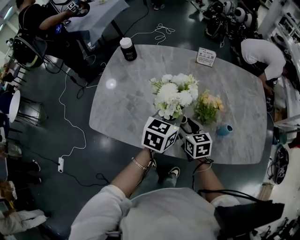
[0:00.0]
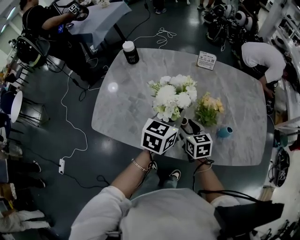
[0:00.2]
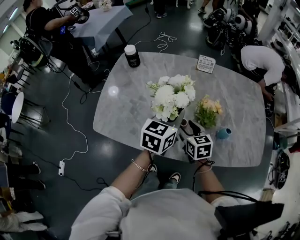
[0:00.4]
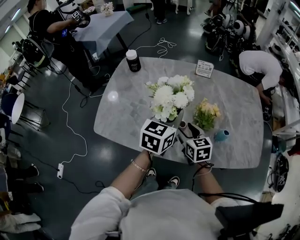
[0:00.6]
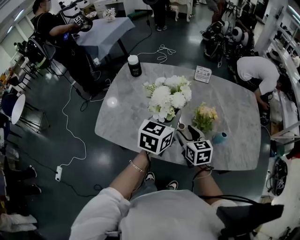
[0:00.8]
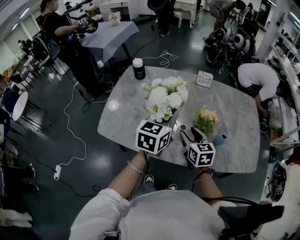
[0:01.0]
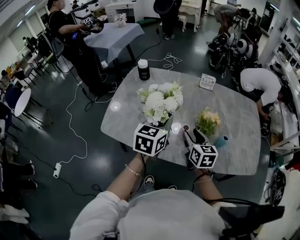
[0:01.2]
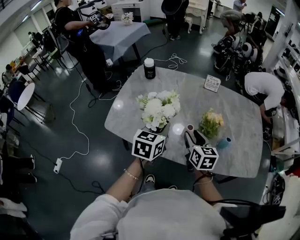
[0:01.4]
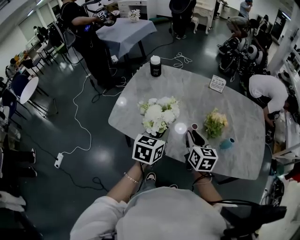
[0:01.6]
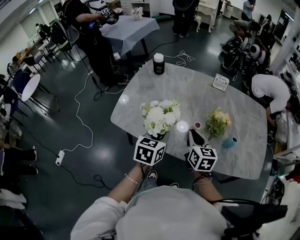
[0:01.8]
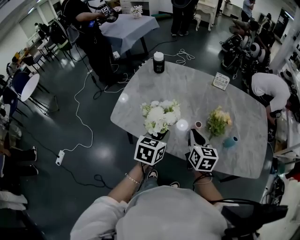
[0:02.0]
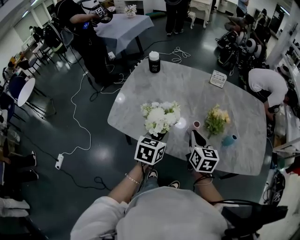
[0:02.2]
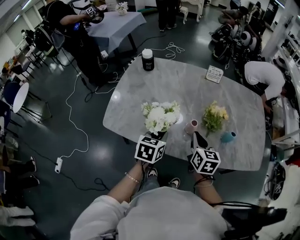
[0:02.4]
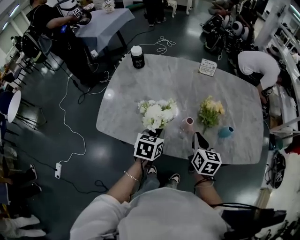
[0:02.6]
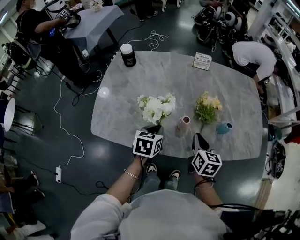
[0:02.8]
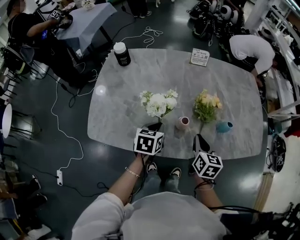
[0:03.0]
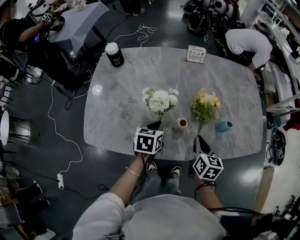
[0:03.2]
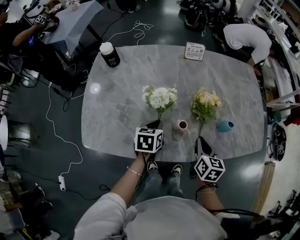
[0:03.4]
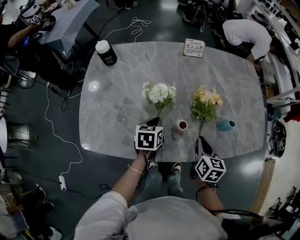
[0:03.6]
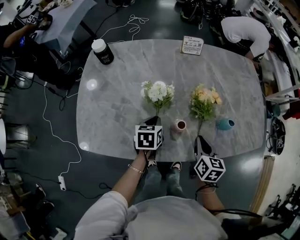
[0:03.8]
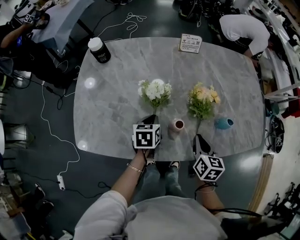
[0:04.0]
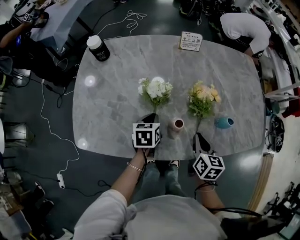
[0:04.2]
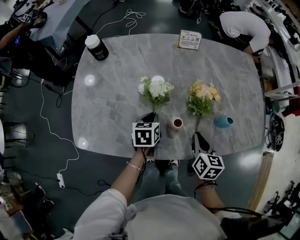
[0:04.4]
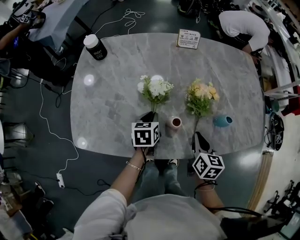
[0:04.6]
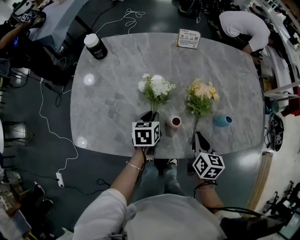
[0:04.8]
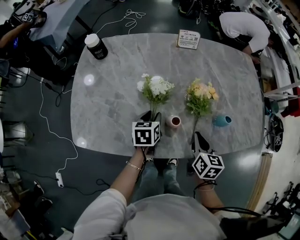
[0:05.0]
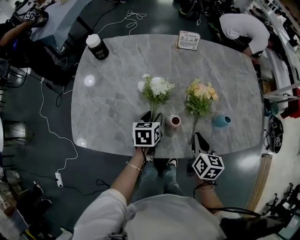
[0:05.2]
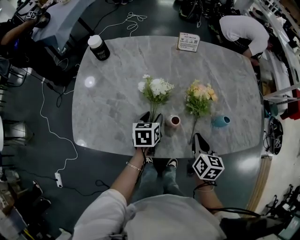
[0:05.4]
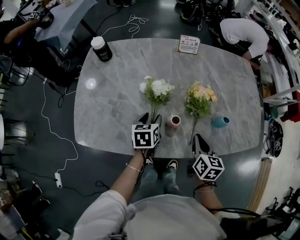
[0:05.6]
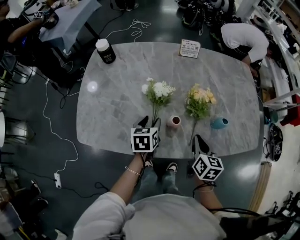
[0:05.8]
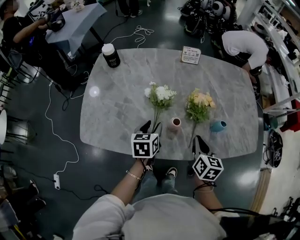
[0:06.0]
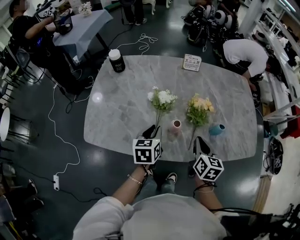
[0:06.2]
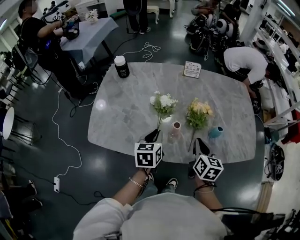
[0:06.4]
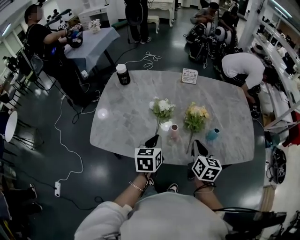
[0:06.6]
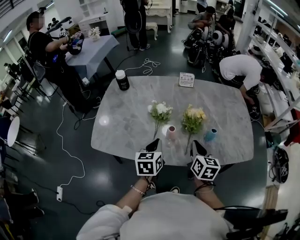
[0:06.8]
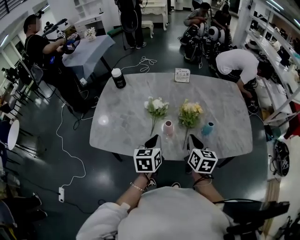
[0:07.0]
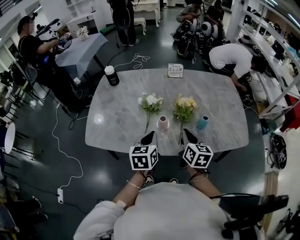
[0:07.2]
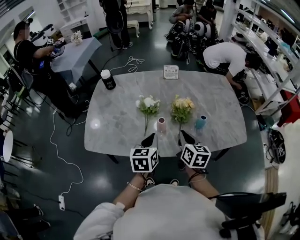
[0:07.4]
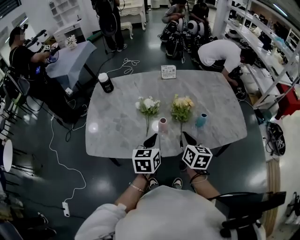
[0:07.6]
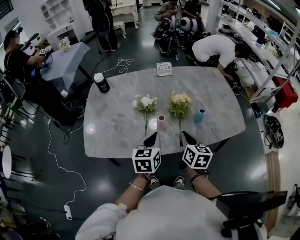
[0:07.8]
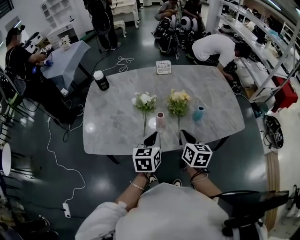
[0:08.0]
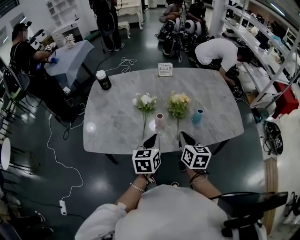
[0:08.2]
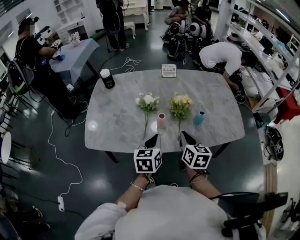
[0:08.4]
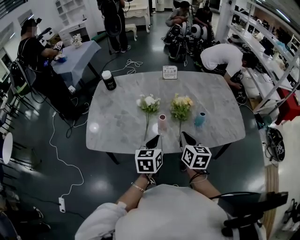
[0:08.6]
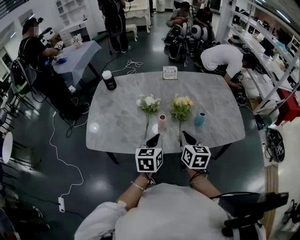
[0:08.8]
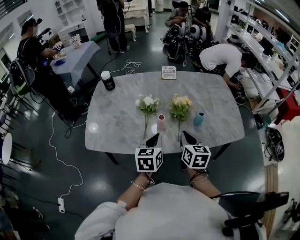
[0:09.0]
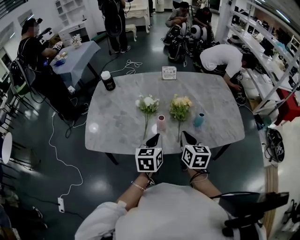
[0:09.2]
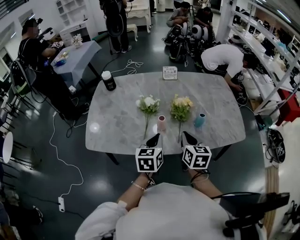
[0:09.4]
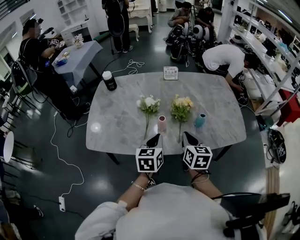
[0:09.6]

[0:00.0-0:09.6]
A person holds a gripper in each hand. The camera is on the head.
0:00.0 to 0:01.6: The left gripper moves to the left and backward, approximately 15 cm. Meanwhile the right gripper shifts about 10 cm upward and backward, and closes its fingers.
0:01.6 to 0:03.2: The right gripper heads to the right and downward, covering roughly 15 cm, changes its angle by approximately 30 degrees, and closes. The left gripper is displaced downward and forward by about 15 cm, and turns by roughly 20 degrees.
0:03.2 to 0:04.8: The left gripper is displaced downward by approximately 5 cm.
0:04.8 to 0:06.4: The right gripper shifts approximately 10 cm upward; the left gripper is displaced upward and backward by about 15 cm, and opens and closes again.
0:06.4 to 0:08.0: The right gripper is displaced backward by some 5 cm. The left gripper heads backward and to the right, covering about 10 cm.
0:08.0 to 0:09.6: The grippers move only a little.

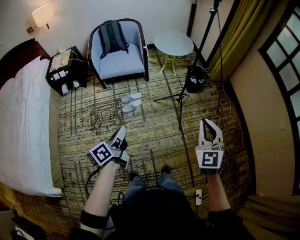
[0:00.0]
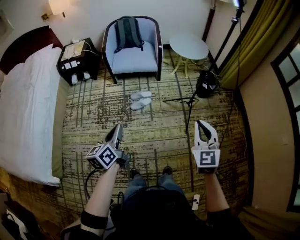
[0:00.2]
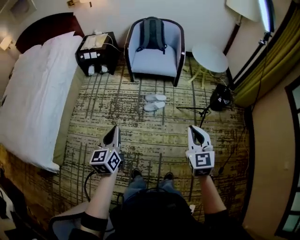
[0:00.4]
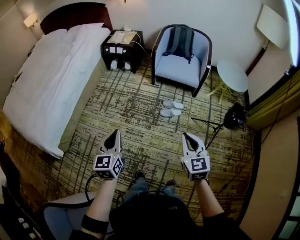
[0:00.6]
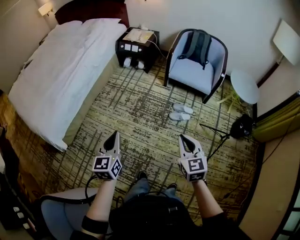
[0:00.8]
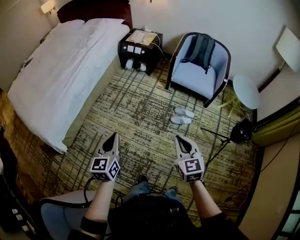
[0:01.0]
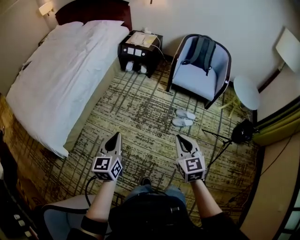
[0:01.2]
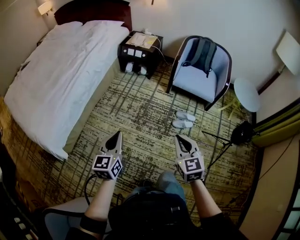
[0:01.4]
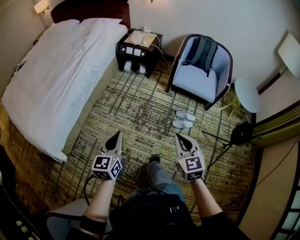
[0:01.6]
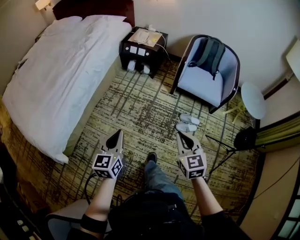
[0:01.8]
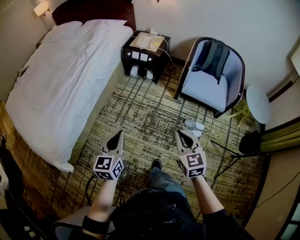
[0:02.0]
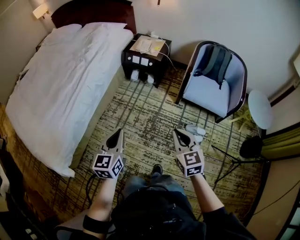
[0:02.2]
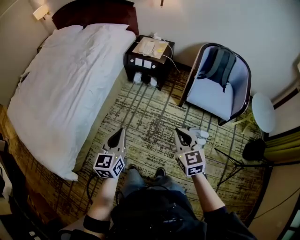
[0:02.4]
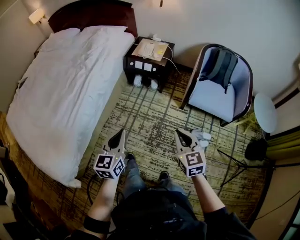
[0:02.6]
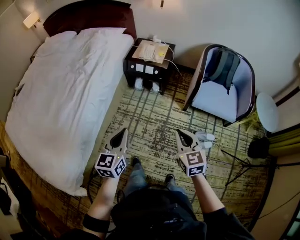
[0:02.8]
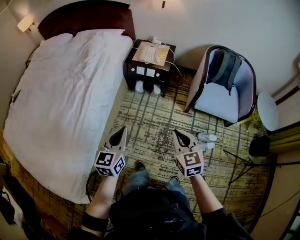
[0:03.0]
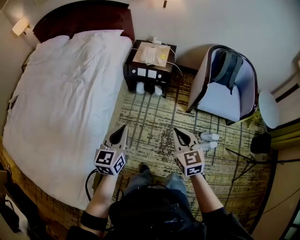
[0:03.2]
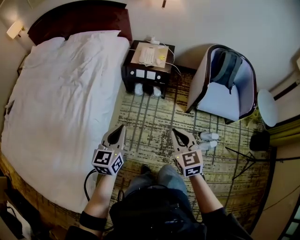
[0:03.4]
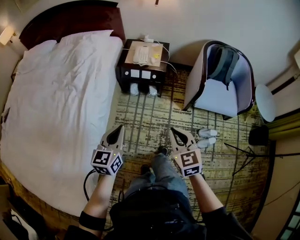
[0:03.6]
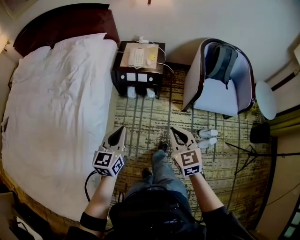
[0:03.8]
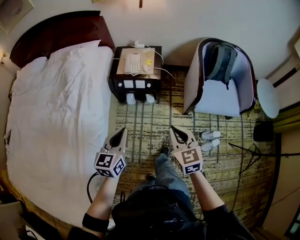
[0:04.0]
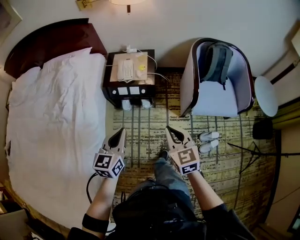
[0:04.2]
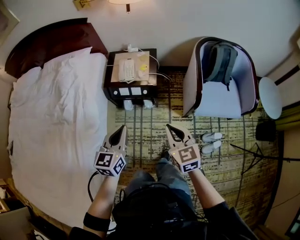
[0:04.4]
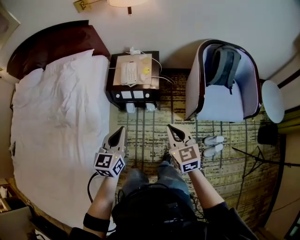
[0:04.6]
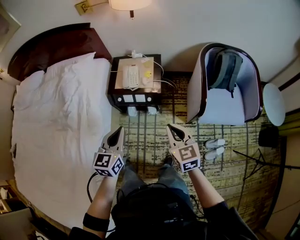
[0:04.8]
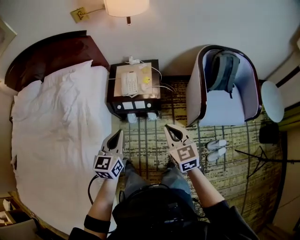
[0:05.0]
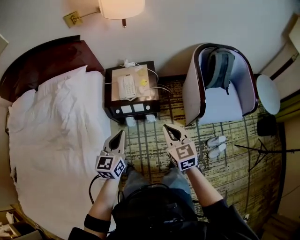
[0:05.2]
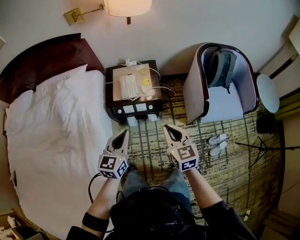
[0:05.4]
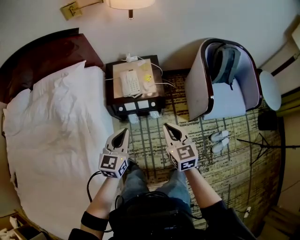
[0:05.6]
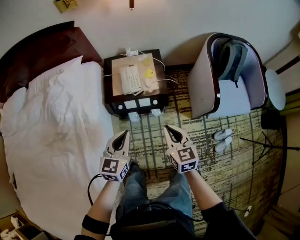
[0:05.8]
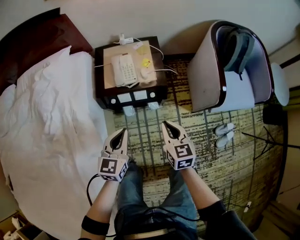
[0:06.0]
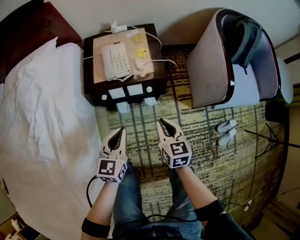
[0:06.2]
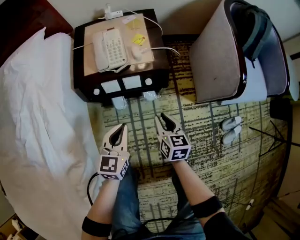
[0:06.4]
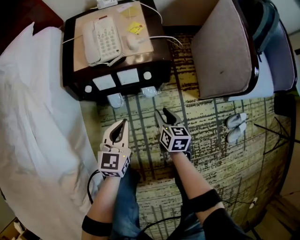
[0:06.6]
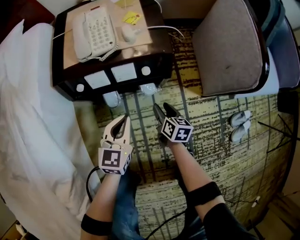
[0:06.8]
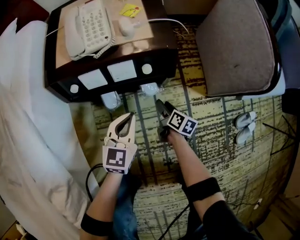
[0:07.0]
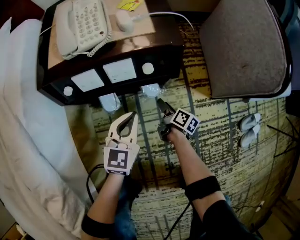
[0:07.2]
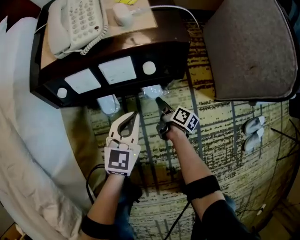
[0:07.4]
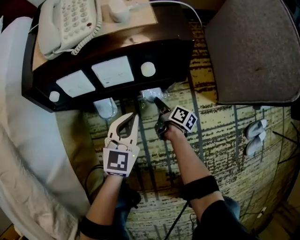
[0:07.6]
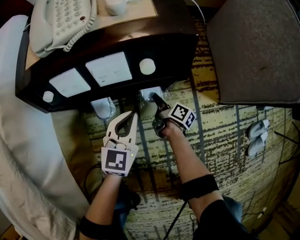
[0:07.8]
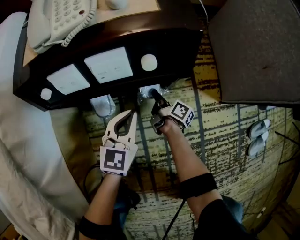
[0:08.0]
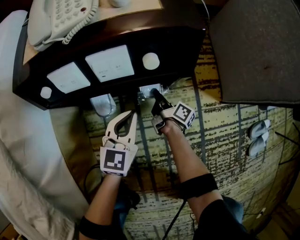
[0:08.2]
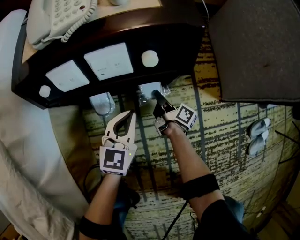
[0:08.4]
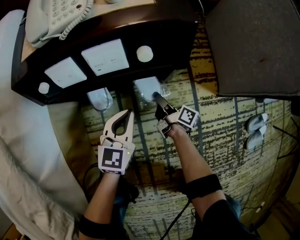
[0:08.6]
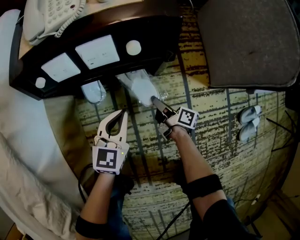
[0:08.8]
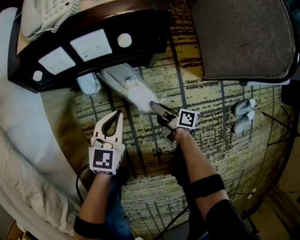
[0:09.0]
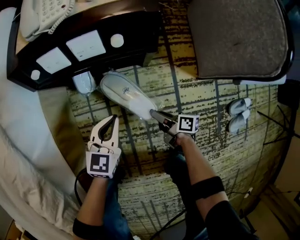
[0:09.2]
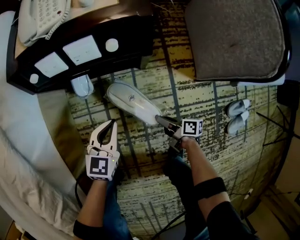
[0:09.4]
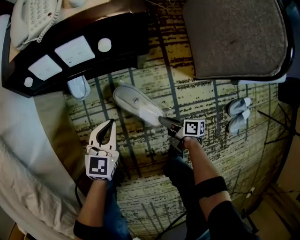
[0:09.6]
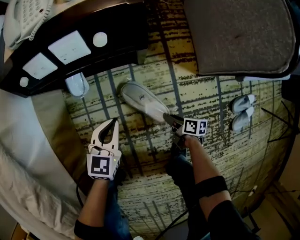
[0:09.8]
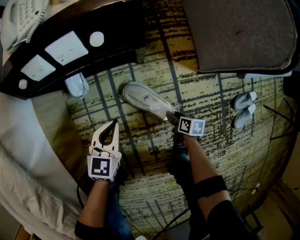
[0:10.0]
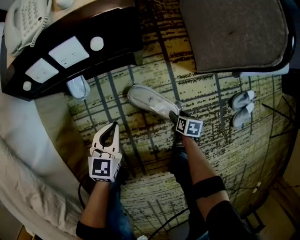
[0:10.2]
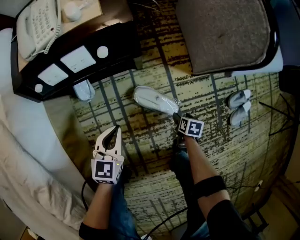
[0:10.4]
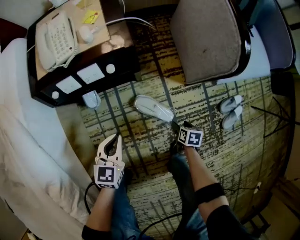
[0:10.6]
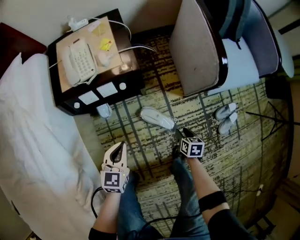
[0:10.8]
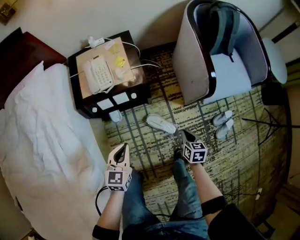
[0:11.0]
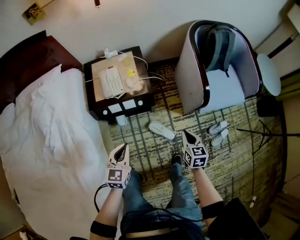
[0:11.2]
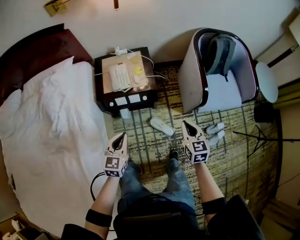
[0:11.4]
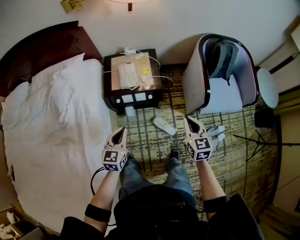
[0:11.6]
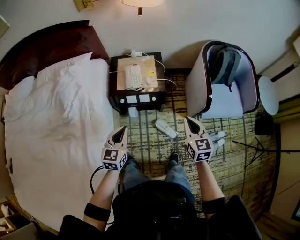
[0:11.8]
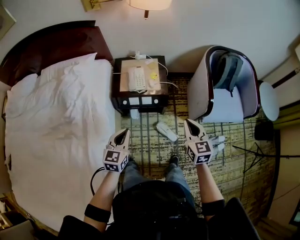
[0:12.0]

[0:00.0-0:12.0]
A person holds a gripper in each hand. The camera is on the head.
0:00.0 to 0:01.6: Both grippers are carried roughly 50 cm. The right gripper rotates about 40 degrees, while the left gripper changes its angle by approximately 50 degrees.
0:01.6 to 0:03.0: Both grippers are carried forward, roughly 50 cm.
0:03.0 to 0:04.4: Both grippers travel together forward, about 35 cm.
0:04.4 to 0:06.0: The grippers both shift downward, forward and to the left by about 30 cm. The right gripper changes its angle by roughly 20 degrees.
0:06.0 to 0:07.6: Both grippers move downward, about 60 cm. The right gripper rotates around the line of its fingers by approximately 60 degrees, clockwise from behind, and opens up.
0:07.6 to 0:09.0: The right gripper heads backward and upward, covering roughly 15 cm, and turns by about 20 degrees; the left gripper shifts approximately 10 cm backward.
0:09.0 to 0:10.4: The right gripper travels to the right and backward by roughly 25 cm, angles its fingers downward, by approximately 60 degrees, and opens up; the left gripper heads backward, covering about 5 cm.
0:10.4 to 0:12.0: The grippers both shift upward by some 70 cm. The right gripper points its fingers roughly 50 degrees further upward, and closes up.

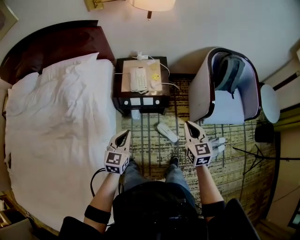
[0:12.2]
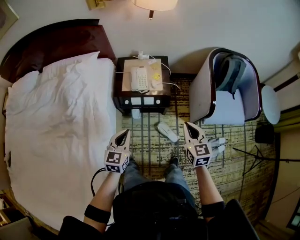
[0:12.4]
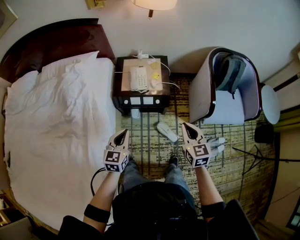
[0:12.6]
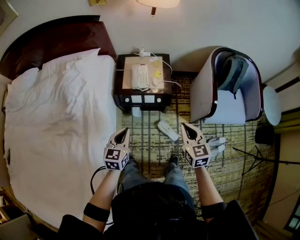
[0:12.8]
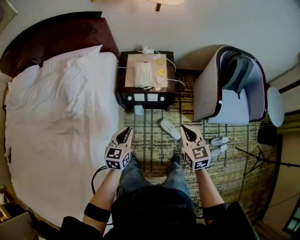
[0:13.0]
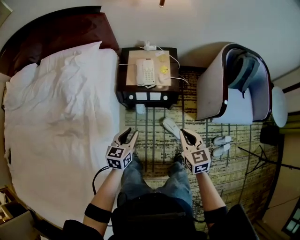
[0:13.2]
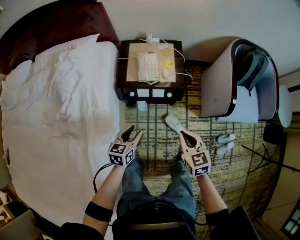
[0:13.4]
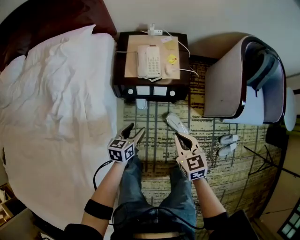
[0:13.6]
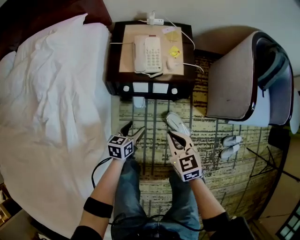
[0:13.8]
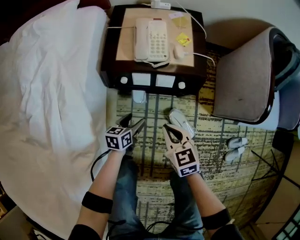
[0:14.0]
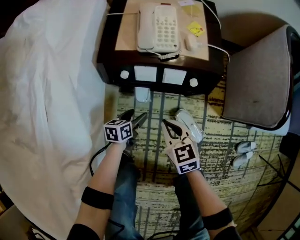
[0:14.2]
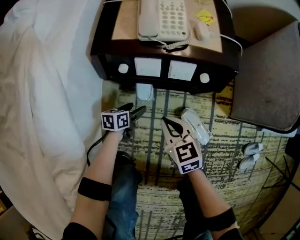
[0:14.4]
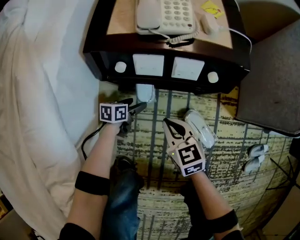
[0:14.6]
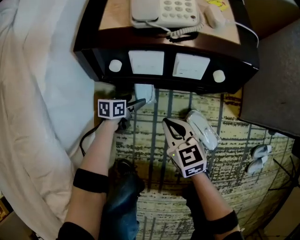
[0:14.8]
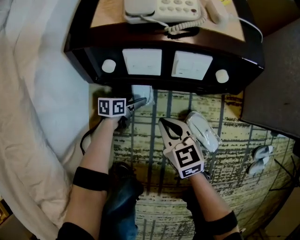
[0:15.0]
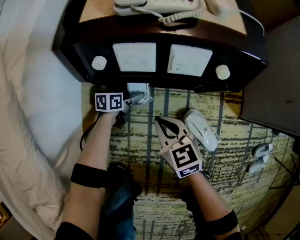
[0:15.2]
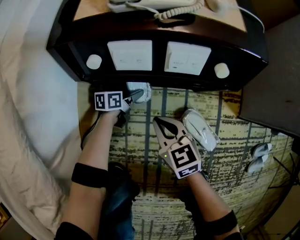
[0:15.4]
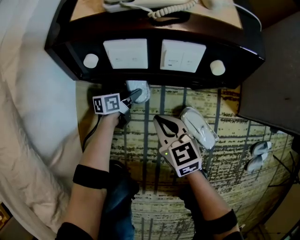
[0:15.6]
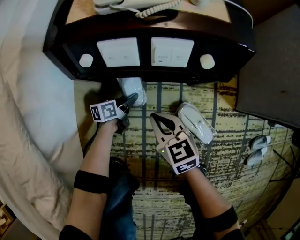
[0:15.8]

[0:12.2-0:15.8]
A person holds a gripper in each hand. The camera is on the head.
0:12.2 to 0:14.0: The left gripper heads downward, covering some 50 cm, rotates about 40 degrees, and opens up. The right gripper is displaced downward and to the left by roughly 40 cm, and swivels some 20 degrees.
0:14.0 to 0:15.8: The grippers both shift downward by some 30 cm. The left gripper turns by some 20 degrees.
